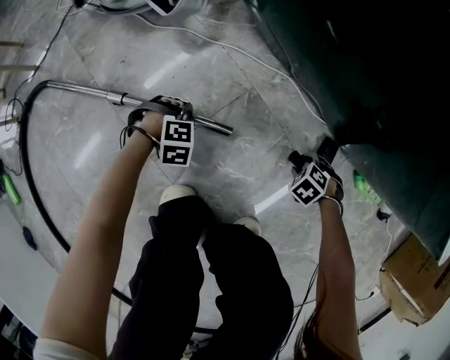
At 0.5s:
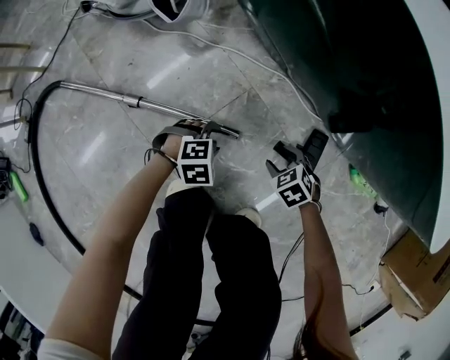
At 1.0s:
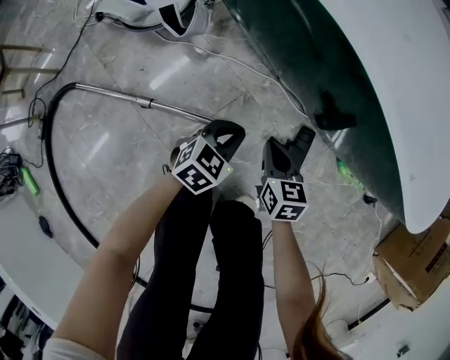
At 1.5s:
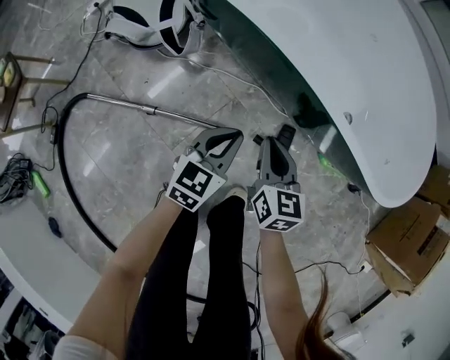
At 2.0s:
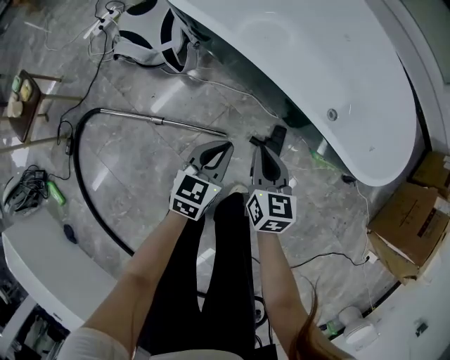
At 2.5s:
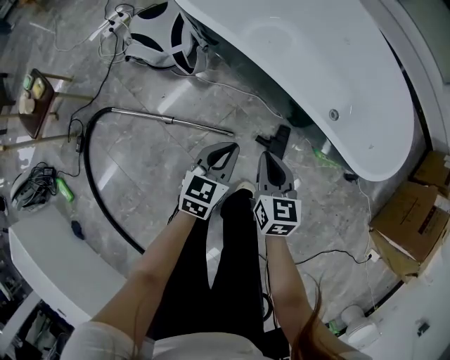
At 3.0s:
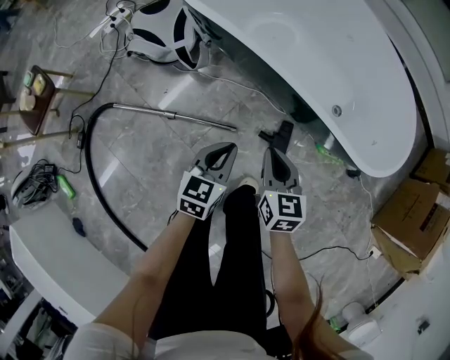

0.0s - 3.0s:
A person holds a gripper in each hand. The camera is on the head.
0.0s - 1.5s: The grippers both shift upward by about 40 cm. The left gripper angles its fingers upward, by about 60 degrees, and closes. The right gripper tilts its fingers approximately 60 degrees upward, and closes its fingers.
1.5s - 3.0s: Both grippers move upward and backward, approximately 15 cm.

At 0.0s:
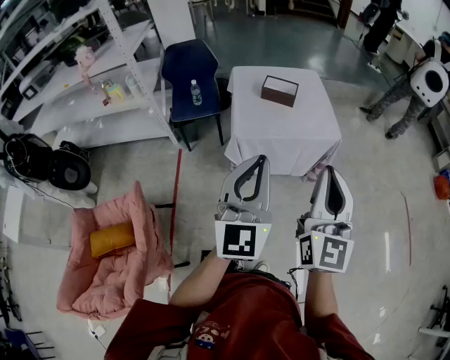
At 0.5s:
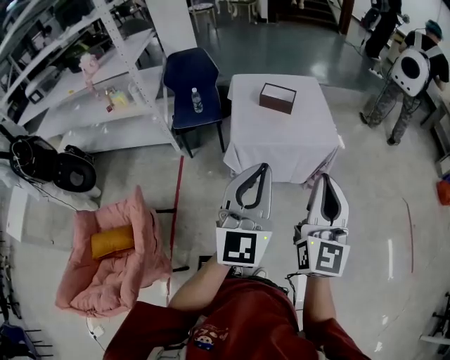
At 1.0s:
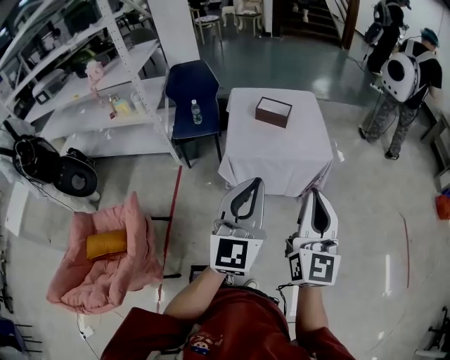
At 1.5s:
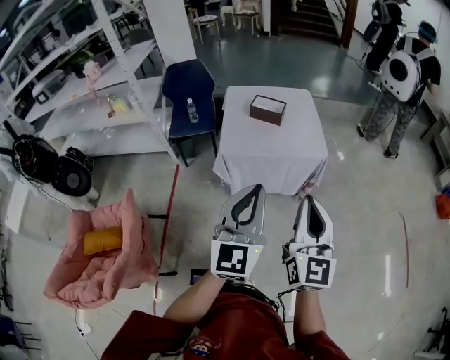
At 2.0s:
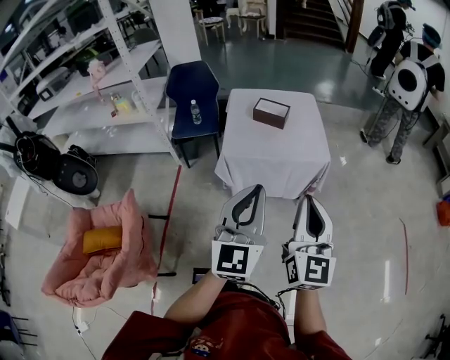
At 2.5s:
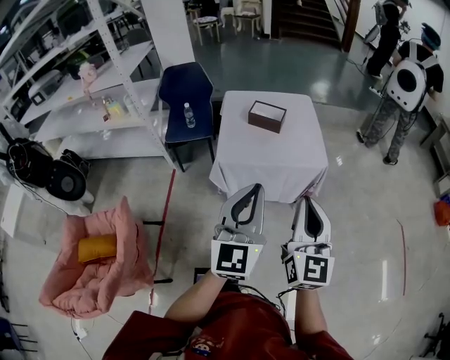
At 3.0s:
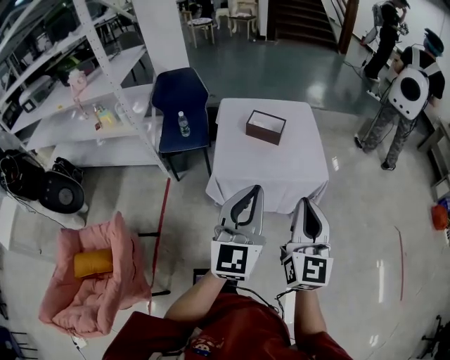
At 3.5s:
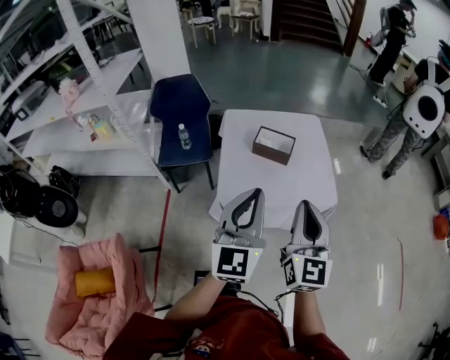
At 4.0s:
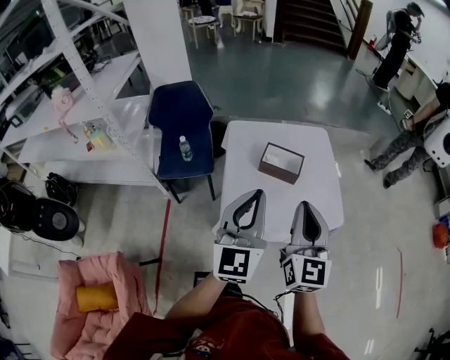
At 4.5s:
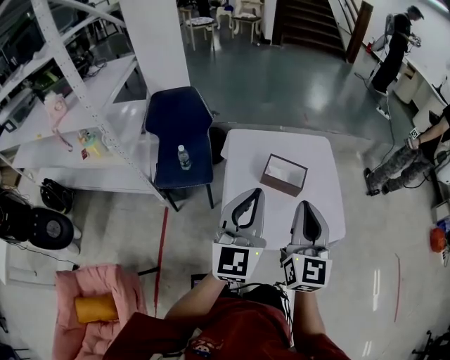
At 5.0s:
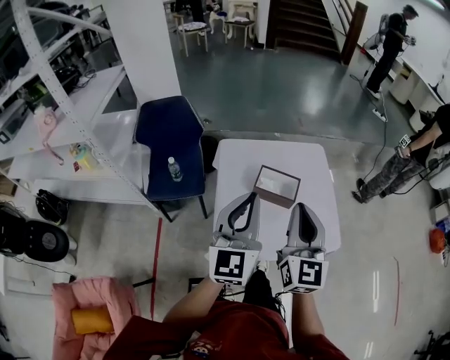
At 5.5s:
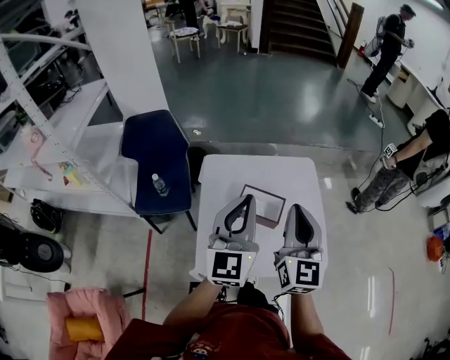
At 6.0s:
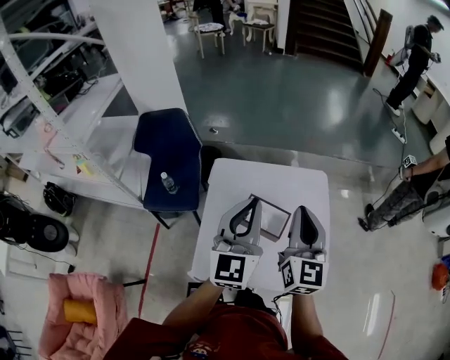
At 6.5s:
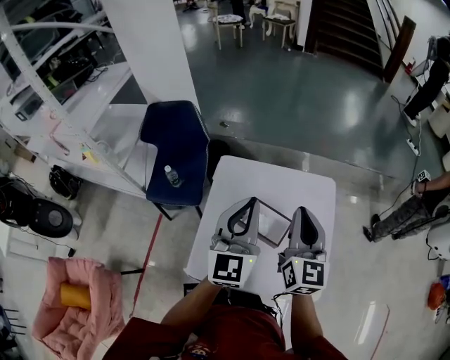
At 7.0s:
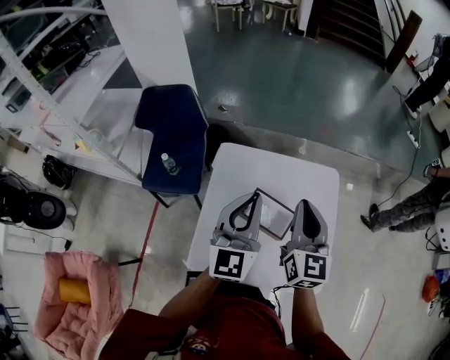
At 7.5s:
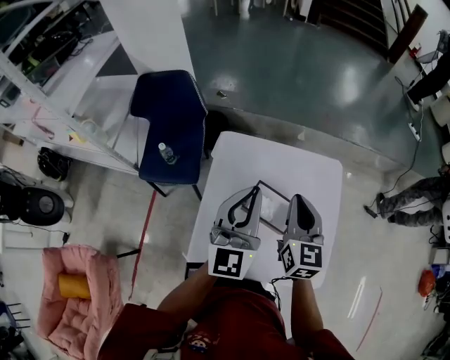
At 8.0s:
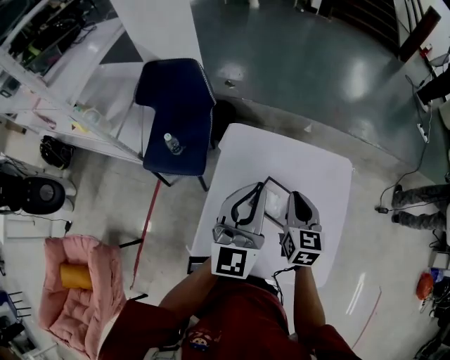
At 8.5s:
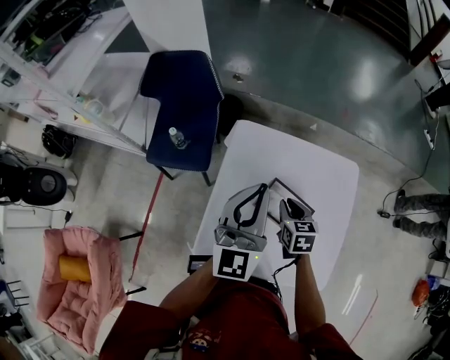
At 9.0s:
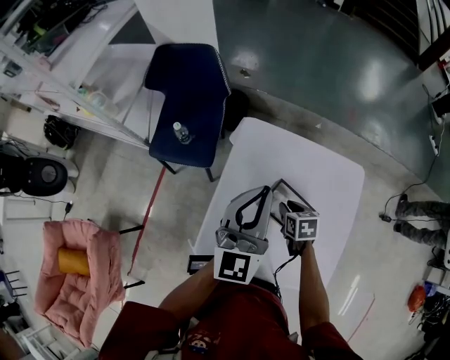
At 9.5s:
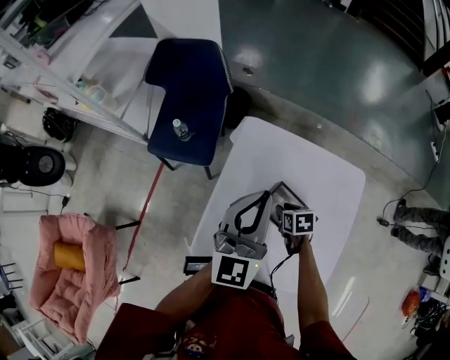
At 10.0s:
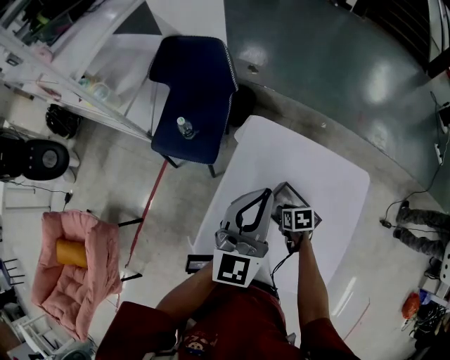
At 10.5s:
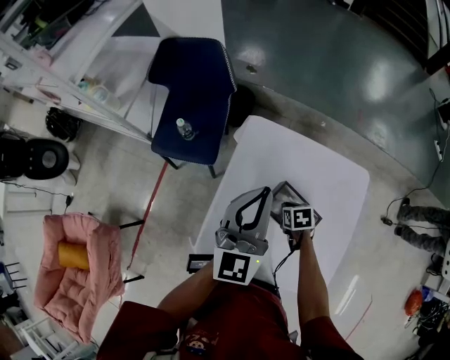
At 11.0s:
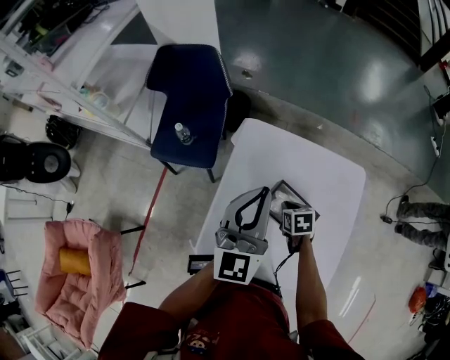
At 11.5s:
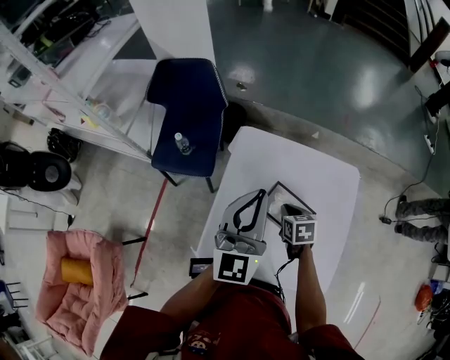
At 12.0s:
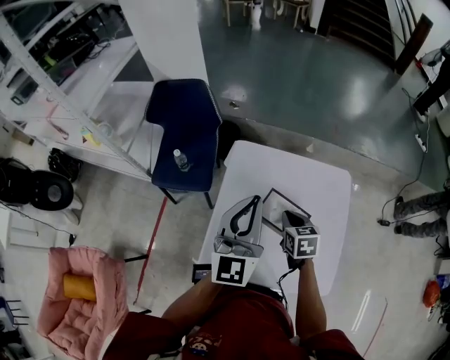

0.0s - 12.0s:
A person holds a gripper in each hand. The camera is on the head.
0.0s - 2.0s: The two grippers go about 10 cm to the right.
2.0s - 4.0s: The two grippers travel together, forward, roughly 40 cm.
4.0s - 6.0s: The two grippers go about 30 cm forward.
6.0s - 8.0s: The left gripper moves forward, downward and to the left, roughly 15 cm, while the right gripper moves downward and forward, approximately 20 cm, and swivels approximately 30 degrees.
8.0s - 10.0s: The right gripper travels downward by some 25 cm, and angles its fingers downward, by roughly 40 degrees; the left gripper moves approximately 5 cm.
10.0s - 12.0s: The right gripper is displaced upward by some 15 cm, and changes its angle by roughly 30 degrees. Meanwhile the left gripper goes roughly 10 cm upward and backward.

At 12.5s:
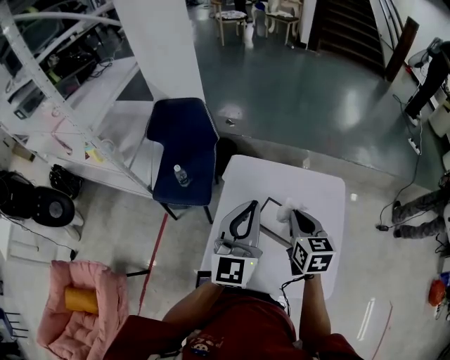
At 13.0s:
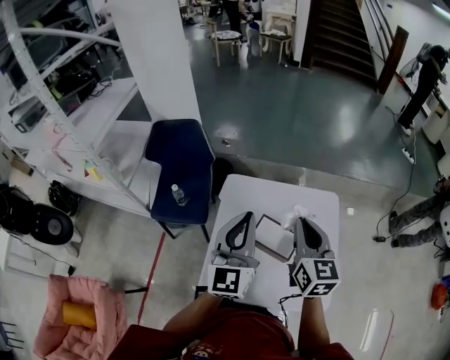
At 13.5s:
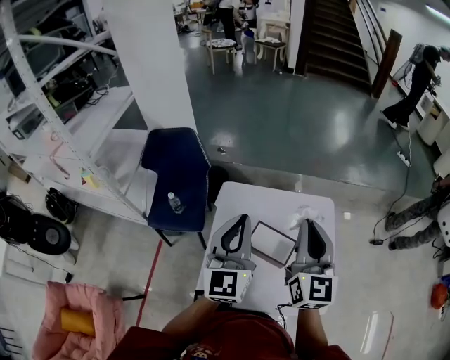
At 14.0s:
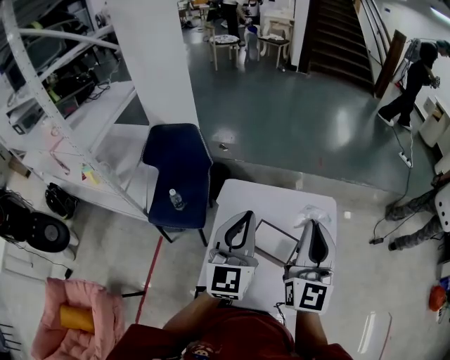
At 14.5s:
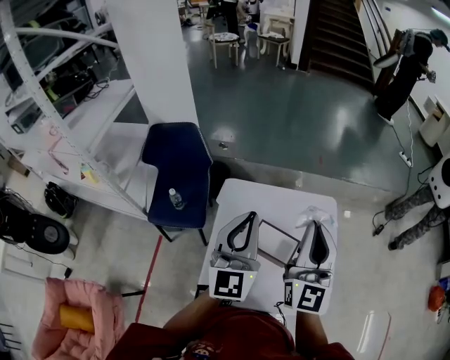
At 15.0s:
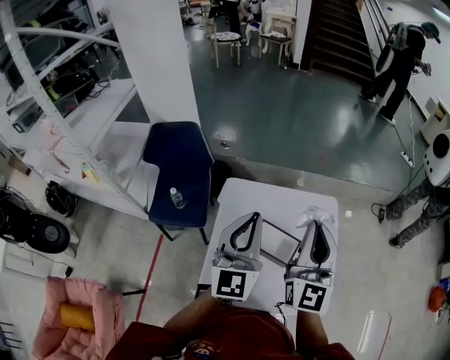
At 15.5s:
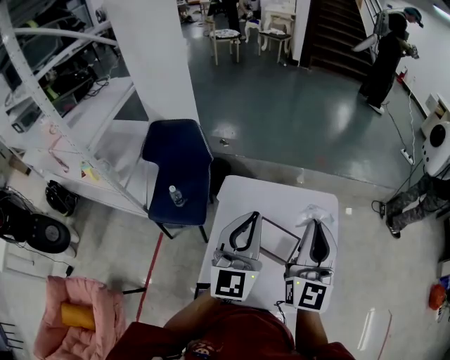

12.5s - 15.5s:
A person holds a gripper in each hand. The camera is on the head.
12.5s - 14.0s: The right gripper moves upward, about 20 cm, and points its fingers some 40 degrees further upward.
14.0s - 15.5s: The grippers make only small movements.

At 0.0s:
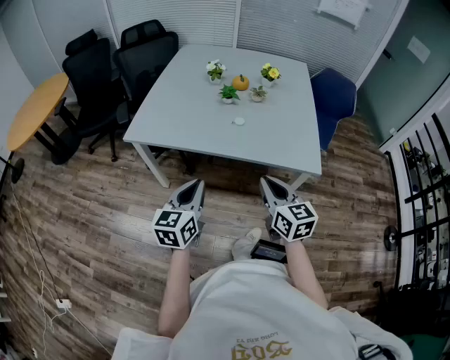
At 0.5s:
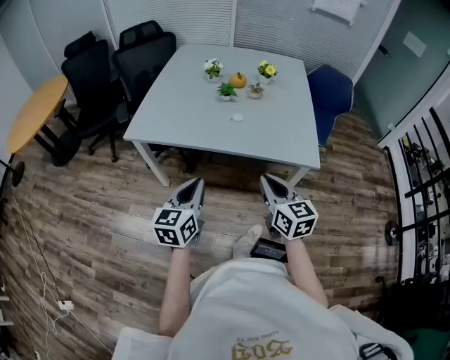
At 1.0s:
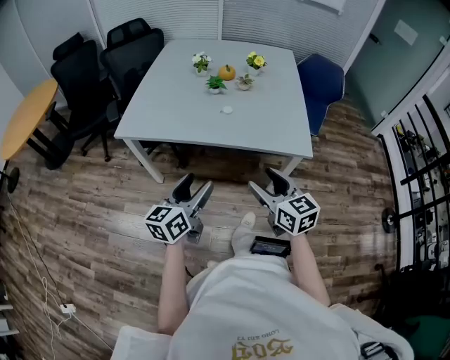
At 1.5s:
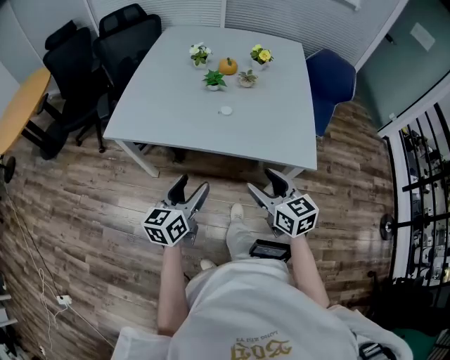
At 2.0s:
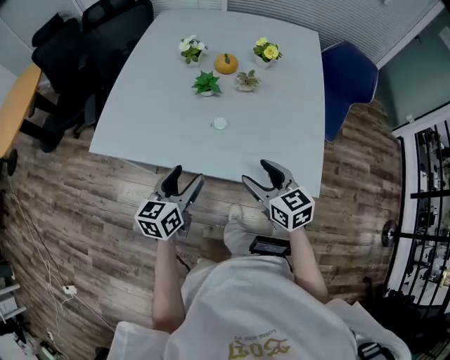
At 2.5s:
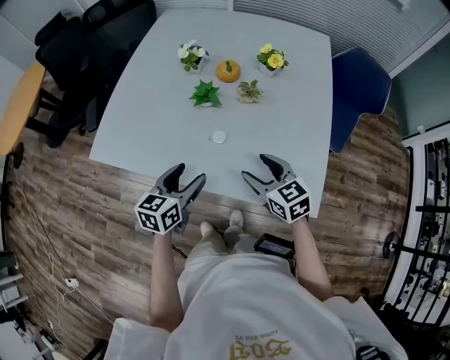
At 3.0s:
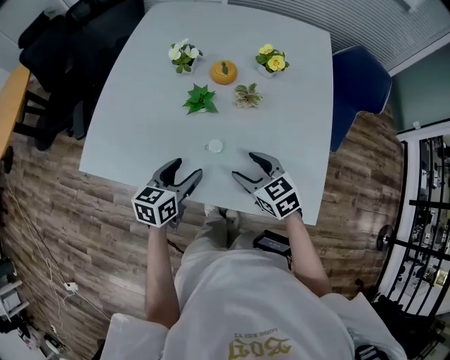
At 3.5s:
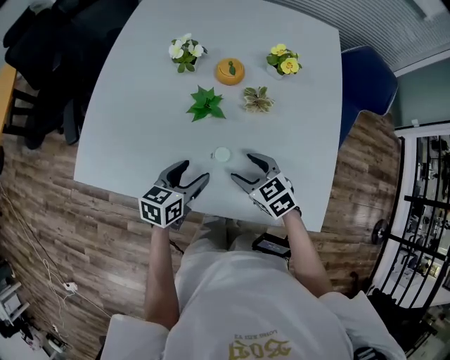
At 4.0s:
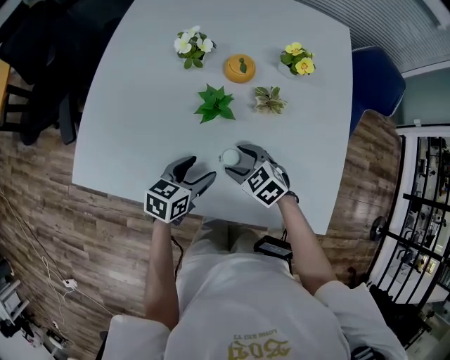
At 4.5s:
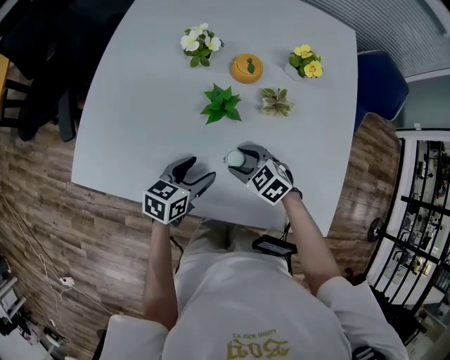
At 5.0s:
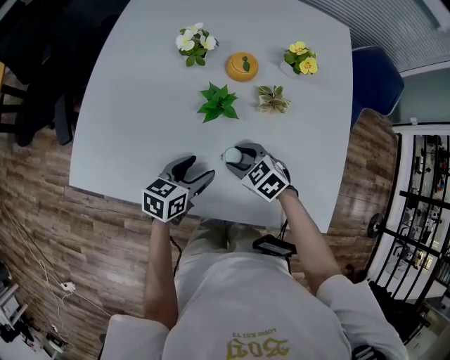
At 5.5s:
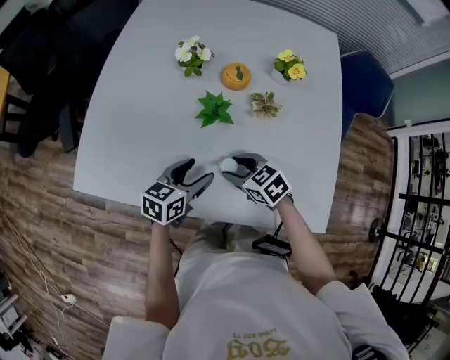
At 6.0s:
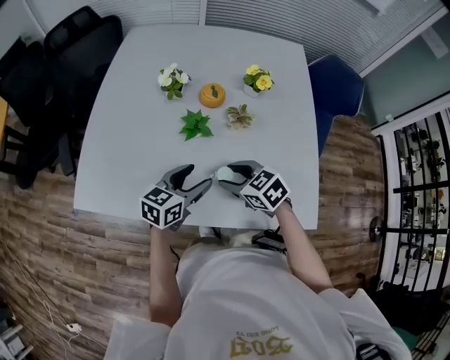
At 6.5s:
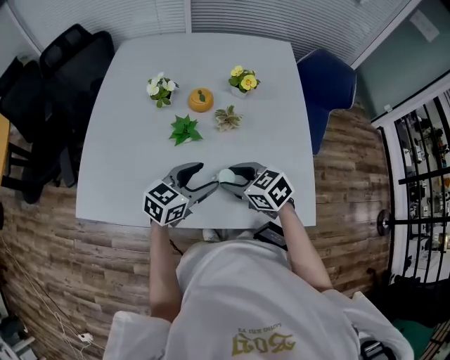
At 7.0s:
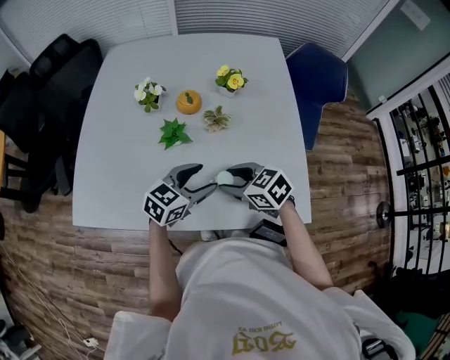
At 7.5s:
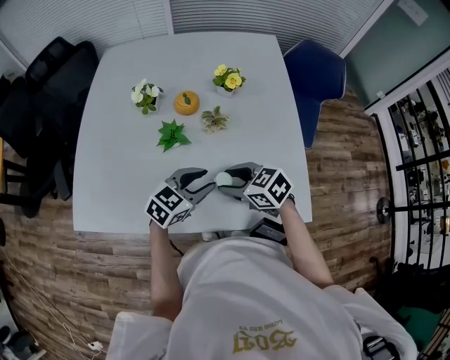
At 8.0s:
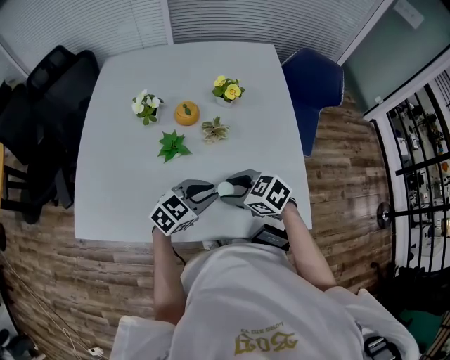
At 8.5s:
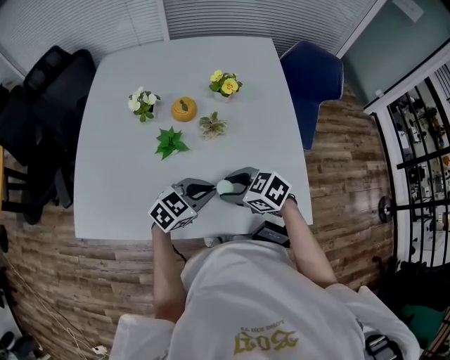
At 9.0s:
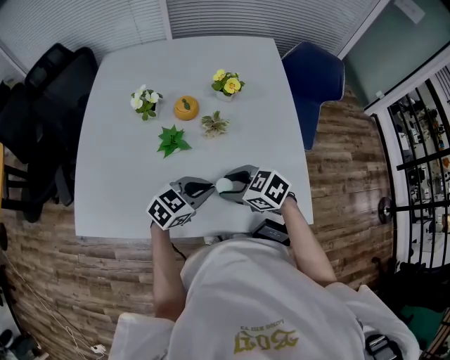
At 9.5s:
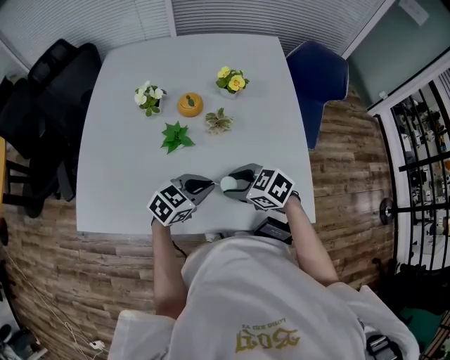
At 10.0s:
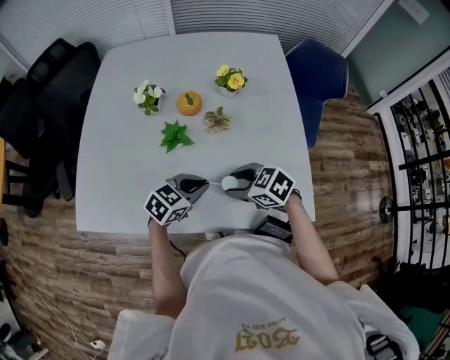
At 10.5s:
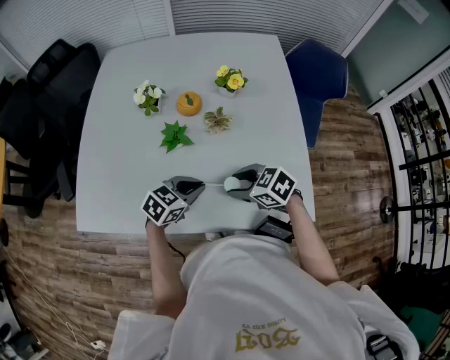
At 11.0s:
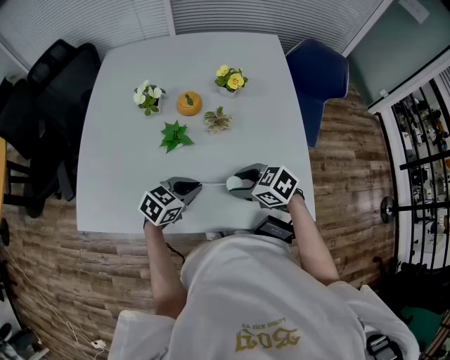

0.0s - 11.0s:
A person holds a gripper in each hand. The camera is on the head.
0.0s - 2.0s: The grippers both shift forward by some 20 cm. The right gripper opens, while the left gripper opens up.
2.0s - 3.5s: The grippers both shift forward and downward by approximately 20 cm. The right gripper turns by approximately 20 degrees.
3.5s - 5.5s: The right gripper heads to the left, covering approximately 5 cm.
5.5s - 7.5s: The left gripper ends up about 15 cm from where it was, swivels some 40 degrees, and closes its fingers; the right gripper shifts by some 15 cm.
7.5s - 9.0s: The left gripper closes.
9.0s - 11.0s: The left gripper changes place by some 5 cm.
